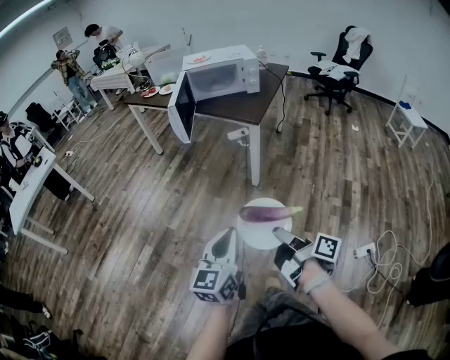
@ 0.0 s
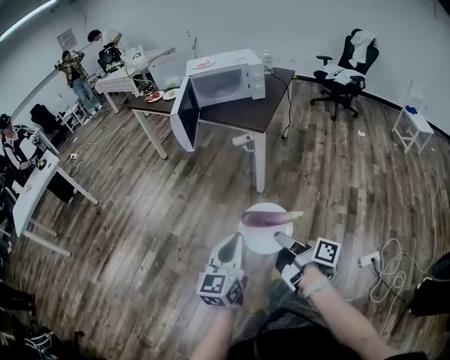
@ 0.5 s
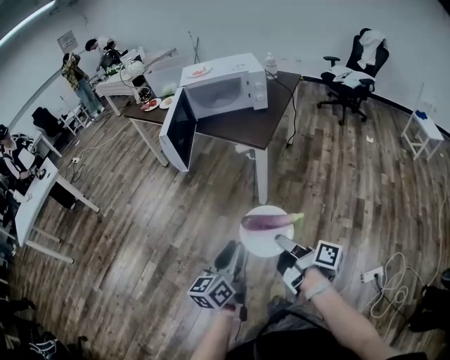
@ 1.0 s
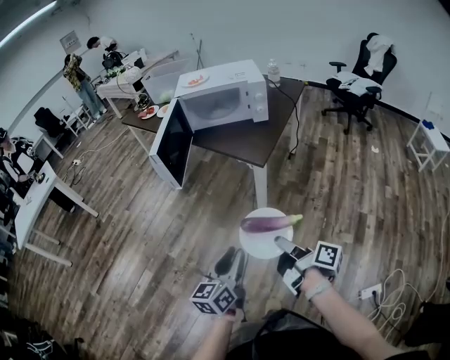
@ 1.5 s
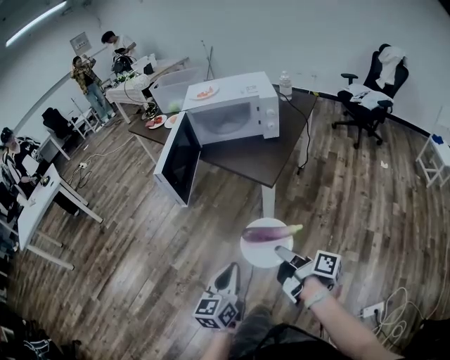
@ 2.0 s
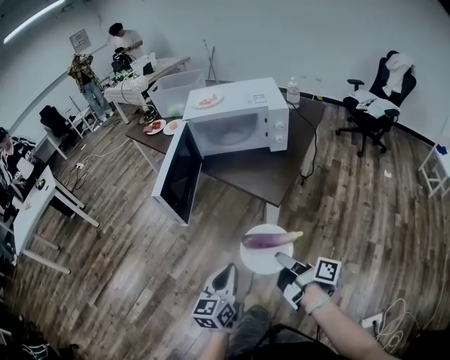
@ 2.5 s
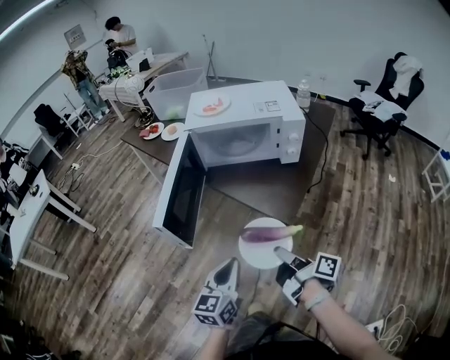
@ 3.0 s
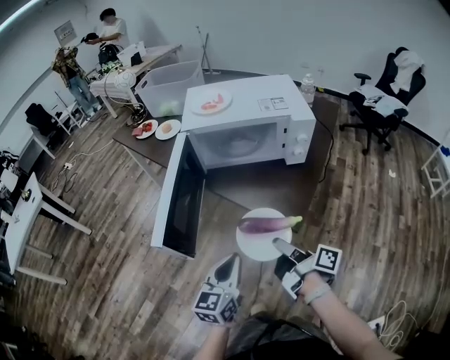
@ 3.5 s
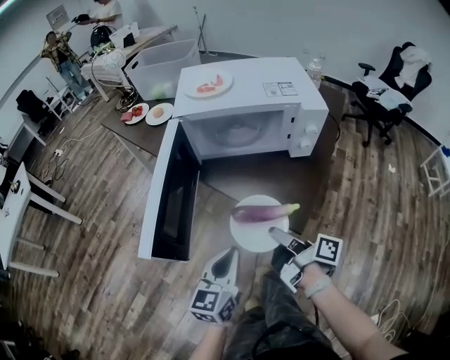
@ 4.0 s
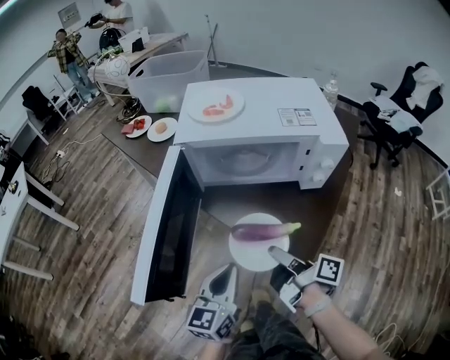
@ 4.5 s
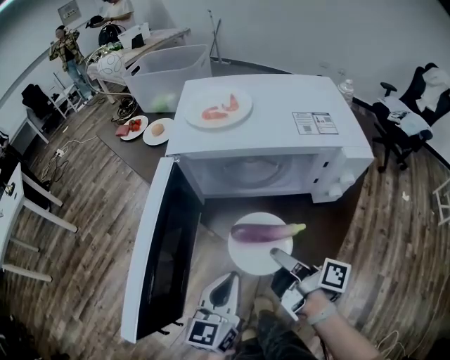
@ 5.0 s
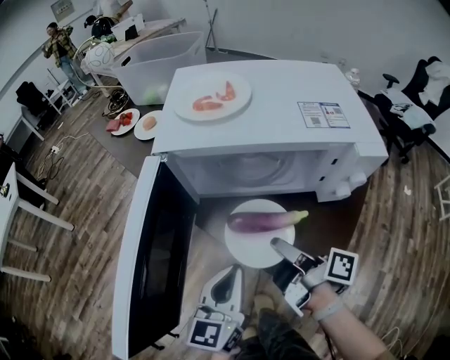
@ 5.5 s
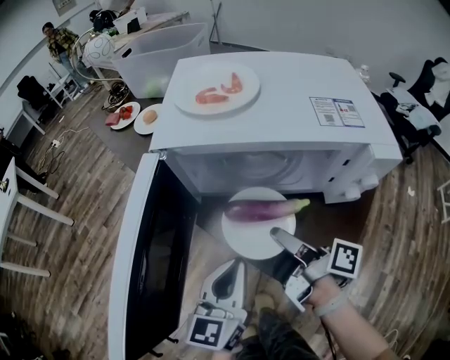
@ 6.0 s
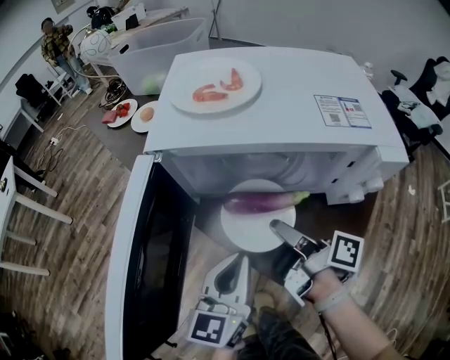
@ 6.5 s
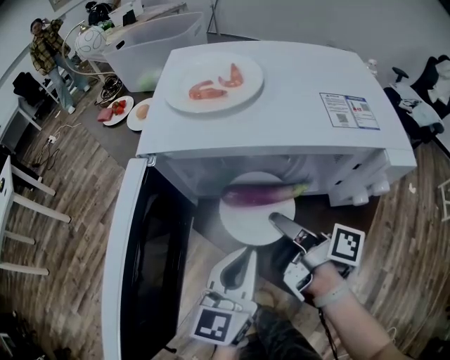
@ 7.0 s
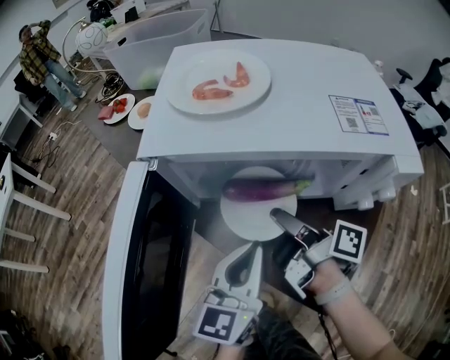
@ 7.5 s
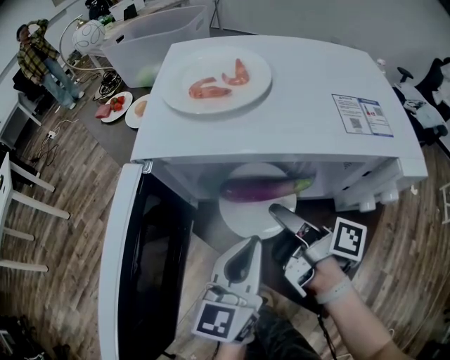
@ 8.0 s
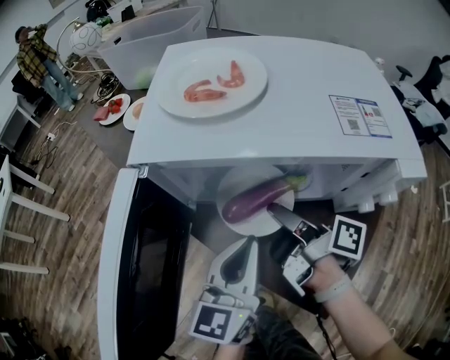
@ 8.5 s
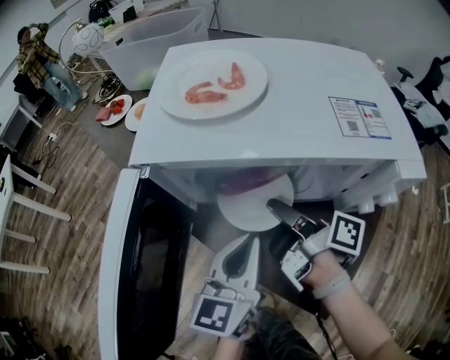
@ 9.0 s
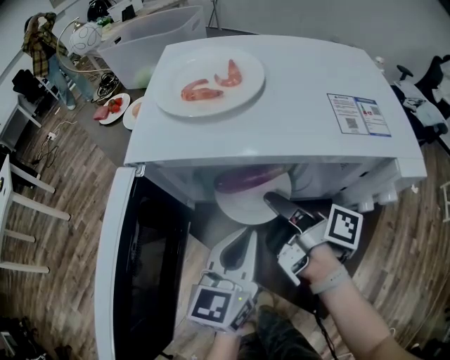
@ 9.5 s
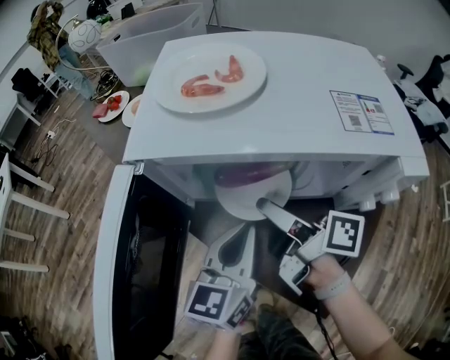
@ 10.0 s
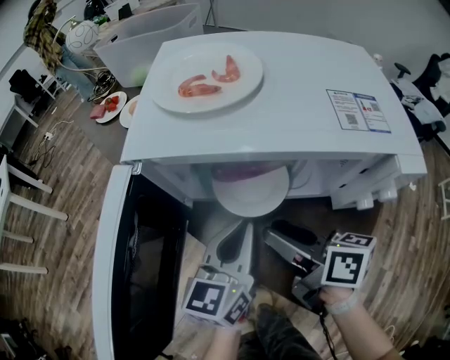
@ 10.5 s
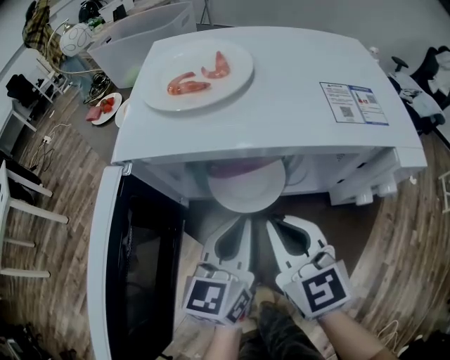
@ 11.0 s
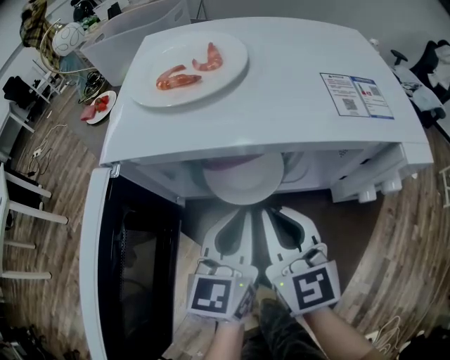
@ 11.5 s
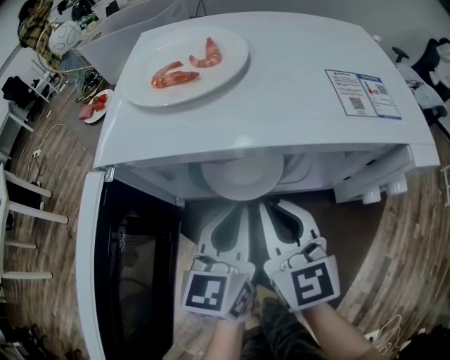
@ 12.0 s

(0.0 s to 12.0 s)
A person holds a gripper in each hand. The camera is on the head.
0.0 s - 2.0 s: Both grippers move forward, approximately 30 cm. The left gripper opens, then closes once more.
2.0 s - 4.0 s: The grippers both shift forward by about 30 cm.
4.0 s - 6.0 s: The grippers both shift forward by approximately 20 cm.
6.0 s - 8.0 s: The two grippers go approximately 5 cm forward.
8.0 s - 10.0 s: The grippers move only a little.
10.0 s - 12.0 s: The right gripper rotates around the line of its fingers by about 80 degrees, counterclockwise from behind, and closes its fingers.

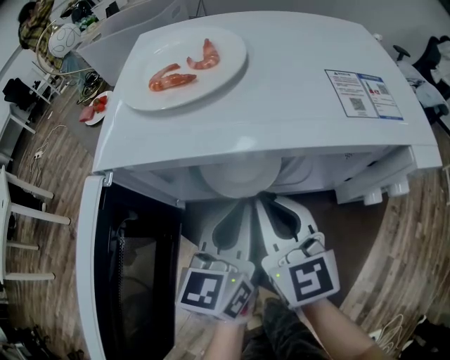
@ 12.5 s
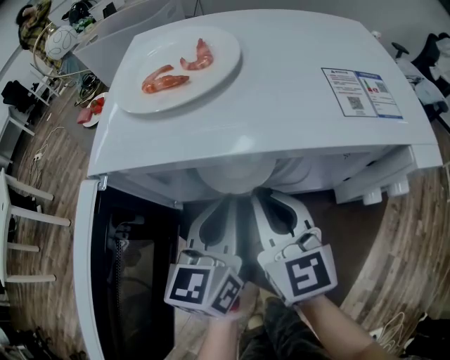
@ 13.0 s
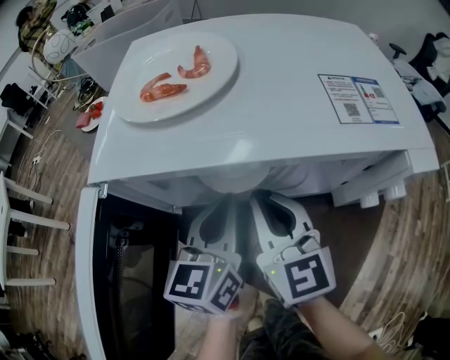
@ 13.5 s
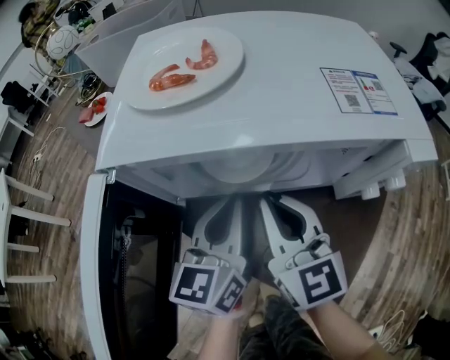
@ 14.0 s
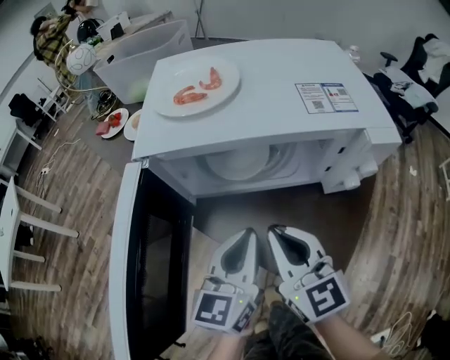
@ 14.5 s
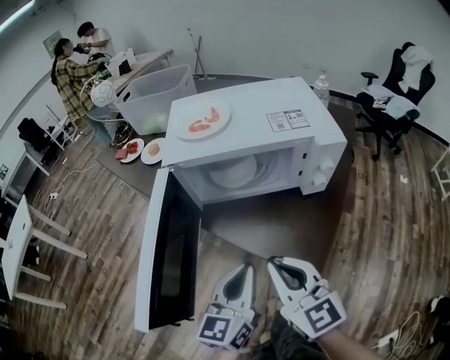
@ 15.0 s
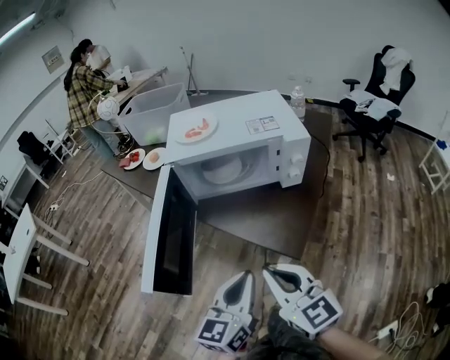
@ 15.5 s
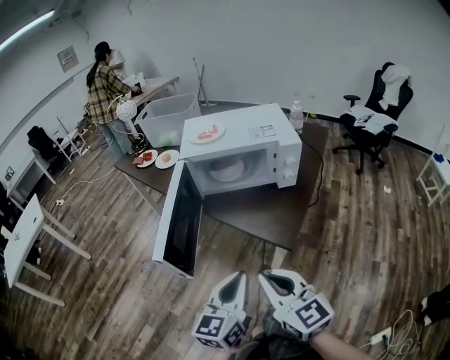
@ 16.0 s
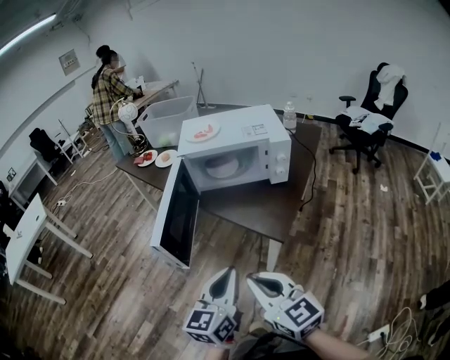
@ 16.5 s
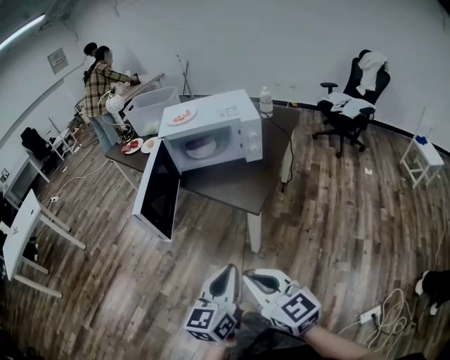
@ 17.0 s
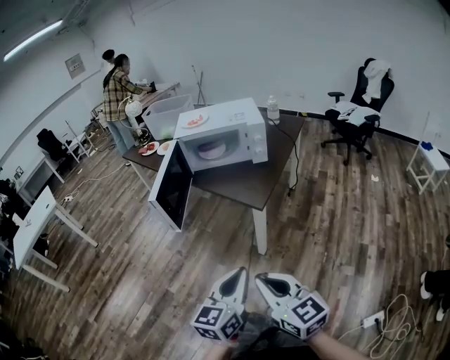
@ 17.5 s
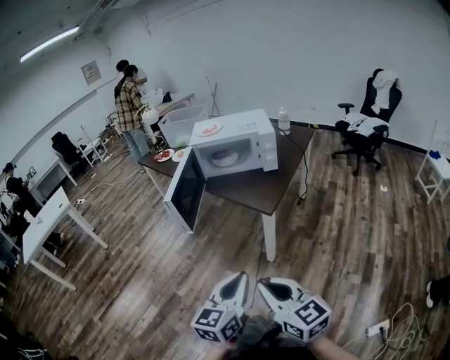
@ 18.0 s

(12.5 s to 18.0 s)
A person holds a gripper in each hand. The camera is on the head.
12.5 s - 14.5 s: Both grippers travel together backward, some 10 cm.
14.5 s - 16.0 s: The two grippers go approximately 30 cm backward.
16.0 s - 18.0 s: Both grippers travel together backward, some 25 cm.

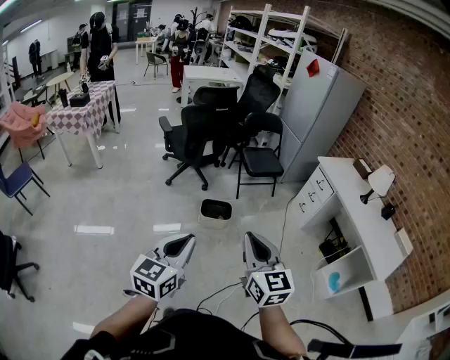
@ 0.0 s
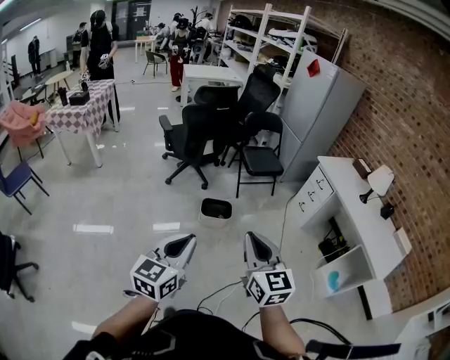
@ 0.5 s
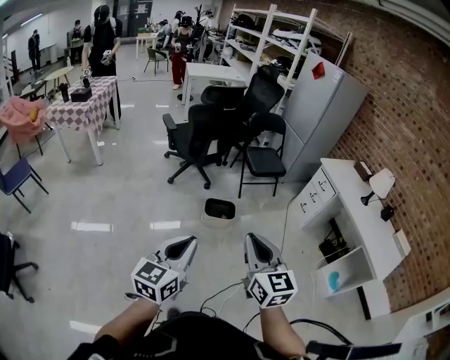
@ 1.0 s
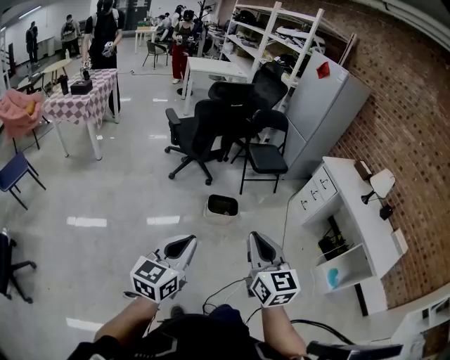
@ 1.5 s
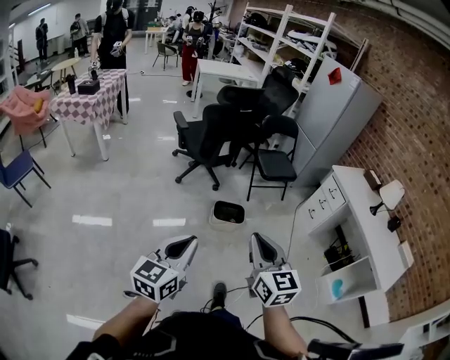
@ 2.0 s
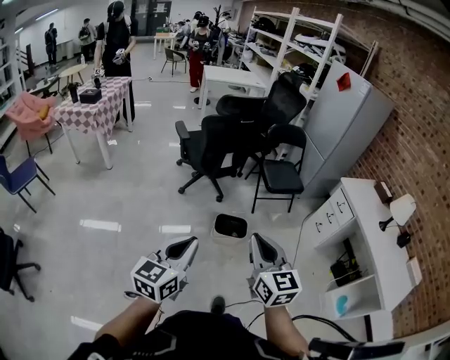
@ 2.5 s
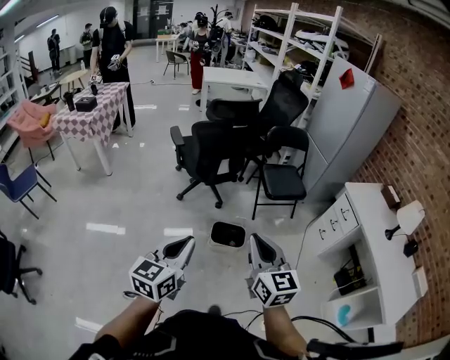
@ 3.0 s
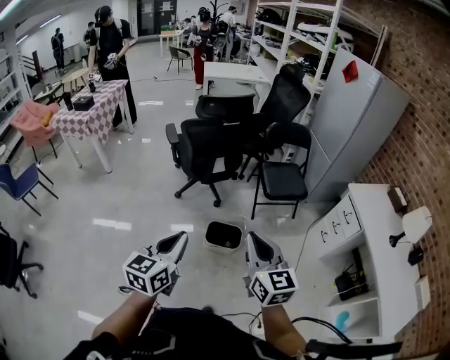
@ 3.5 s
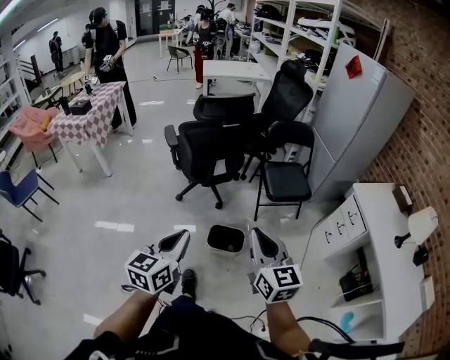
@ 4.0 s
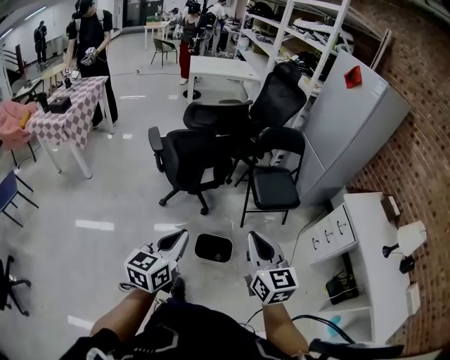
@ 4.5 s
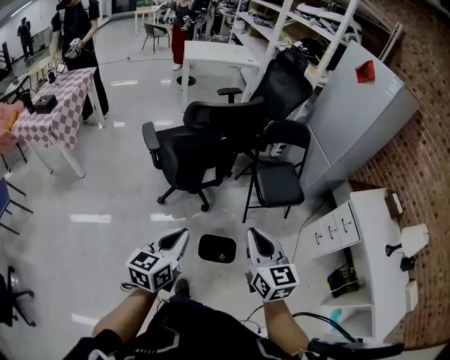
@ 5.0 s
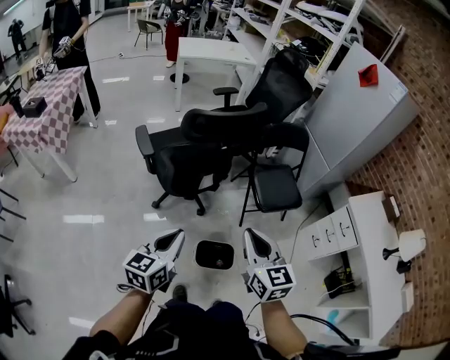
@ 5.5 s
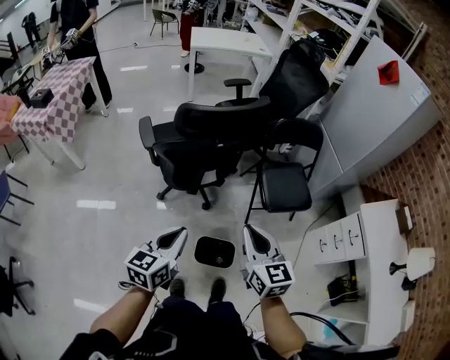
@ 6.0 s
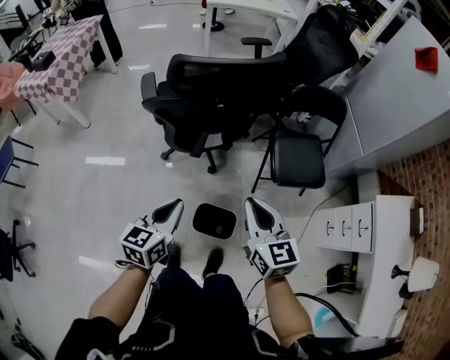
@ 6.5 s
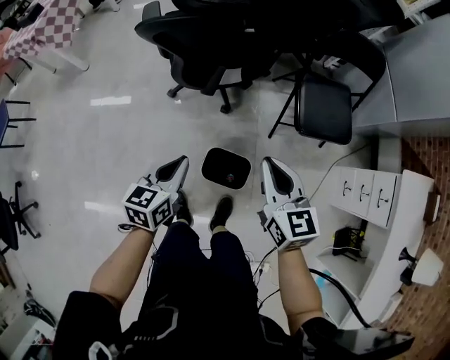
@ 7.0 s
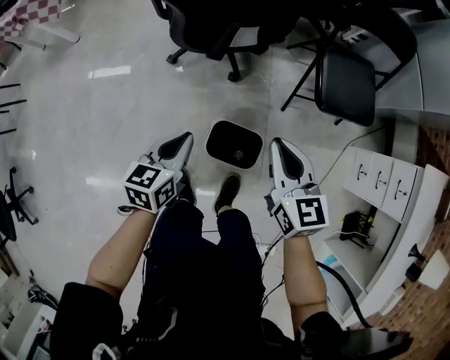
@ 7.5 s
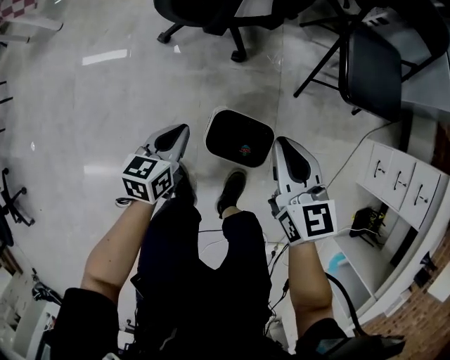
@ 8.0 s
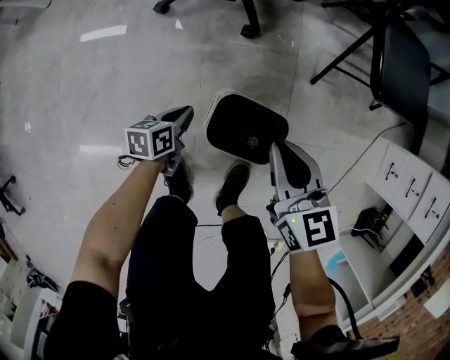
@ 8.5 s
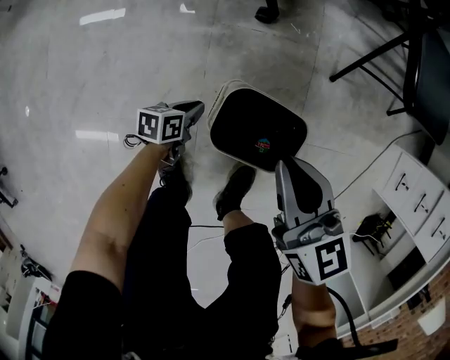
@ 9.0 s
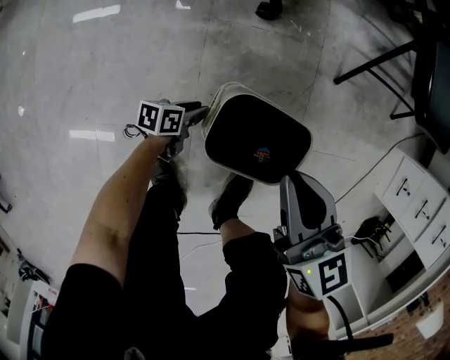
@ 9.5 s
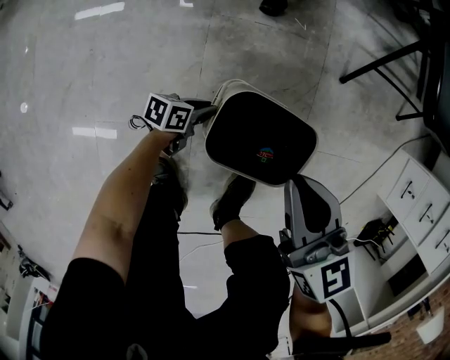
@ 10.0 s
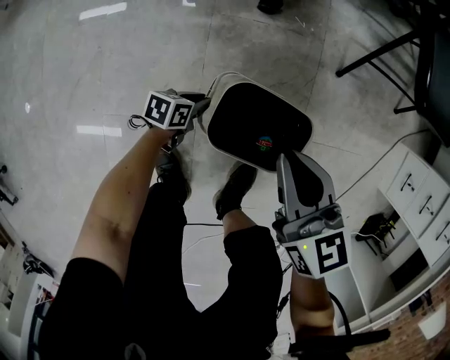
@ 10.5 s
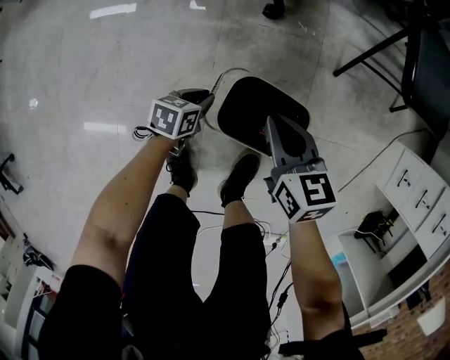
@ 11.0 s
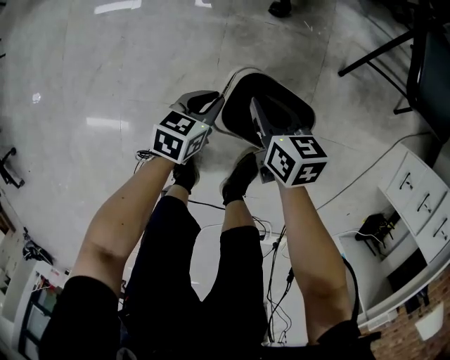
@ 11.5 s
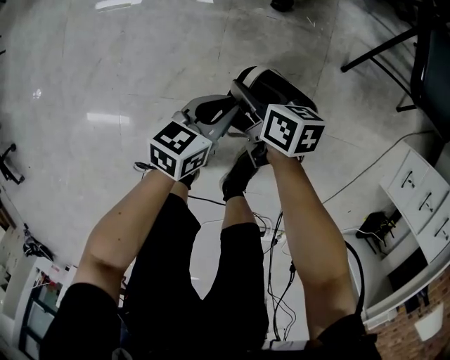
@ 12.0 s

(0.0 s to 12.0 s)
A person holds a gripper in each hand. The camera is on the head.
0.0 s - 2.0 s: The two grippers go some 10 cm to the left.
2.0 s - 4.0 s: The grippers both shift forward and to the right by roughly 35 cm.
4.0 s - 6.0 s: Both grippers travel together forward, approximately 30 cm.
6.0 s - 8.0 s: The two grippers go some 40 cm downward. The left gripper changes its angle by approximately 20 degrees.
8.0 s - 10.0 s: The left gripper heads downward, covering roughly 40 cm, and swivels approximately 40 degrees, while the right gripper travels downward by roughly 20 cm.
10.0 s - 12.0 s: The right gripper is displaced downward and to the left by approximately 15 cm, swivels some 30 degrees, and opens. Meanwhile the left gripper shifts approximately 25 cm upward, and swivels approximately 30 degrees.
